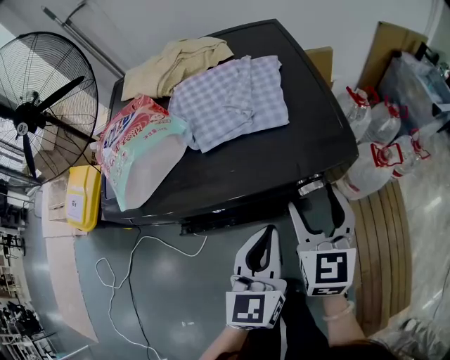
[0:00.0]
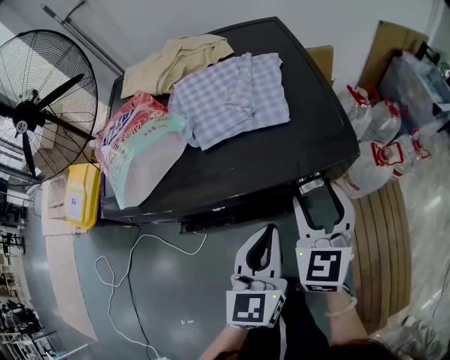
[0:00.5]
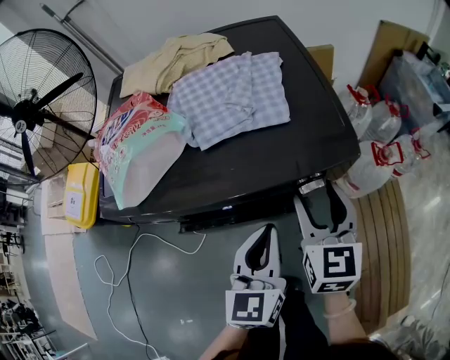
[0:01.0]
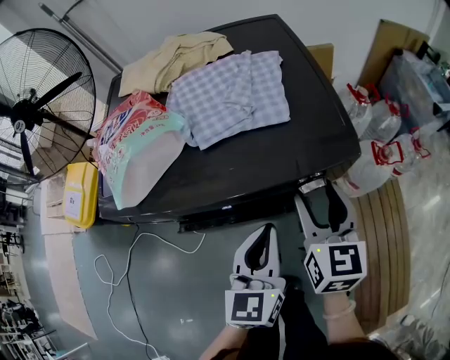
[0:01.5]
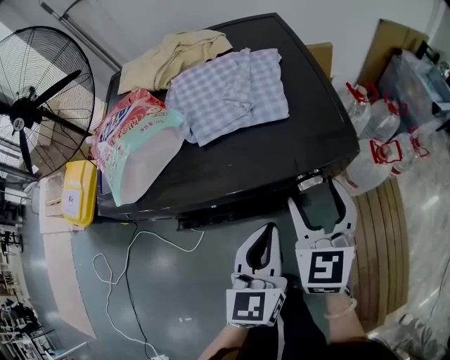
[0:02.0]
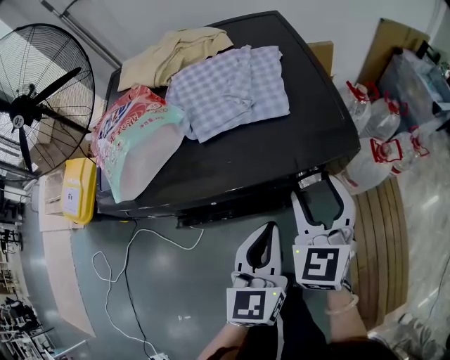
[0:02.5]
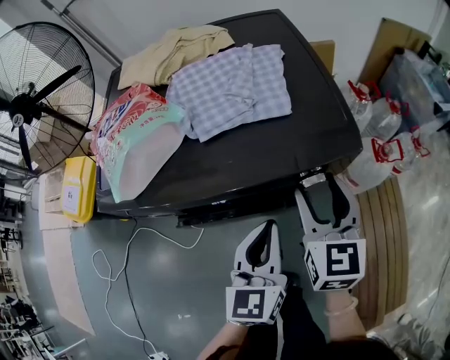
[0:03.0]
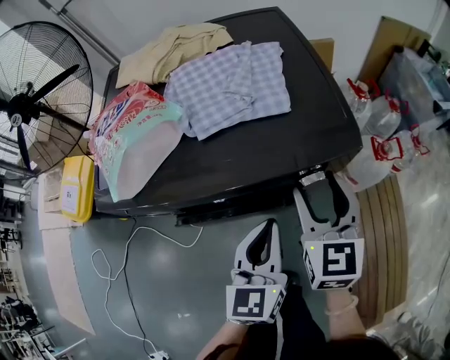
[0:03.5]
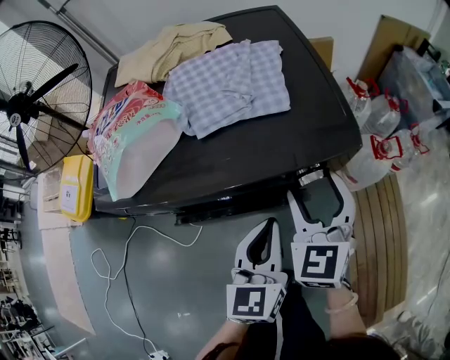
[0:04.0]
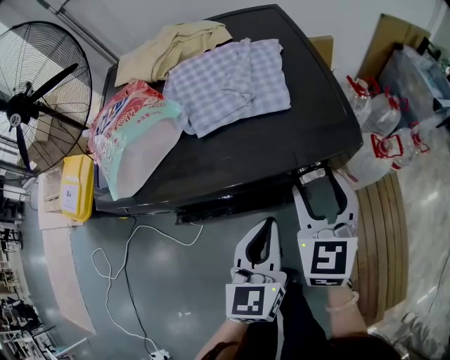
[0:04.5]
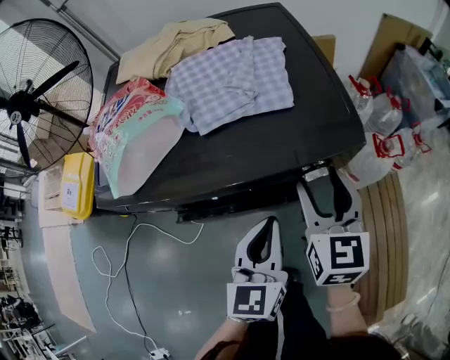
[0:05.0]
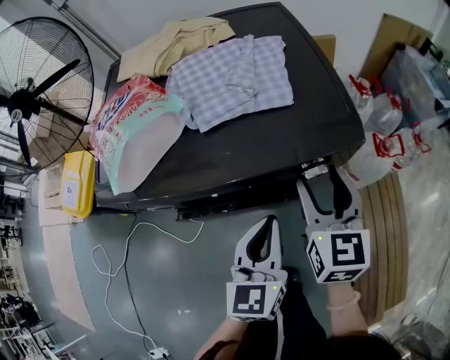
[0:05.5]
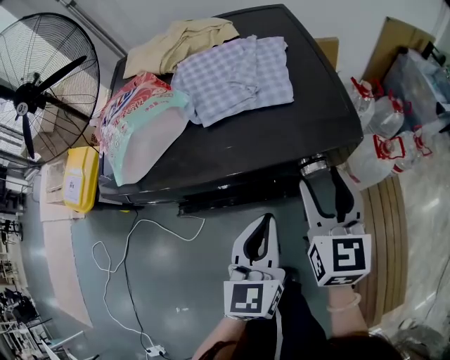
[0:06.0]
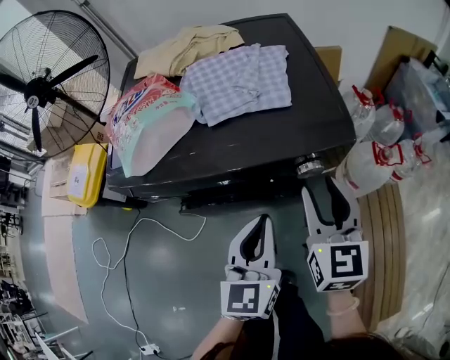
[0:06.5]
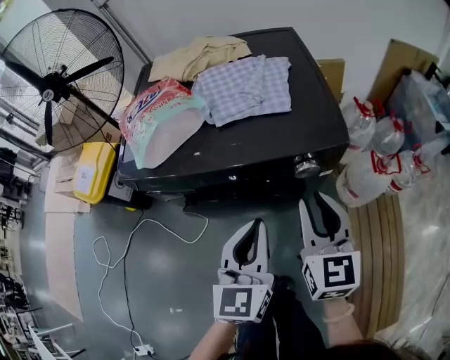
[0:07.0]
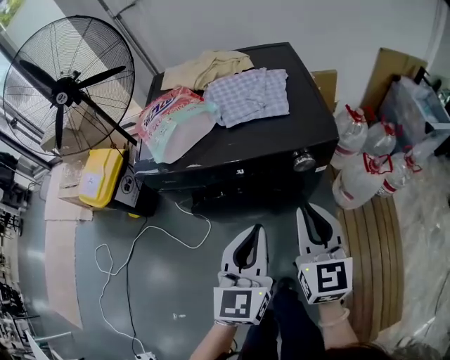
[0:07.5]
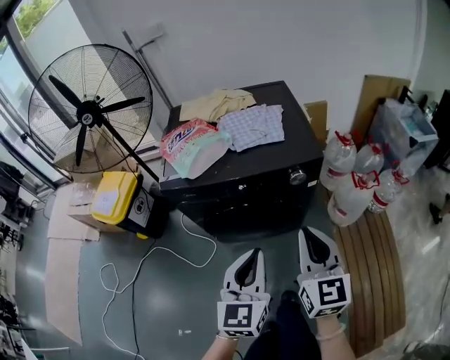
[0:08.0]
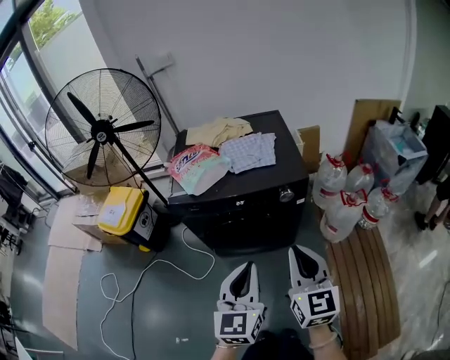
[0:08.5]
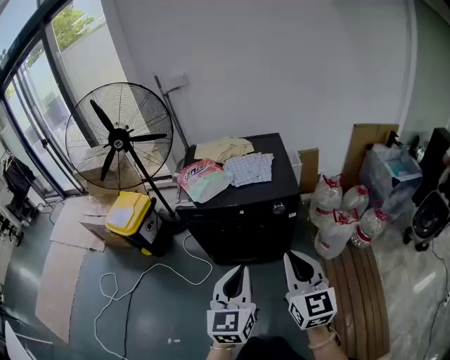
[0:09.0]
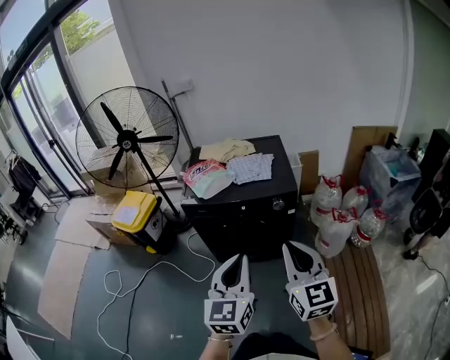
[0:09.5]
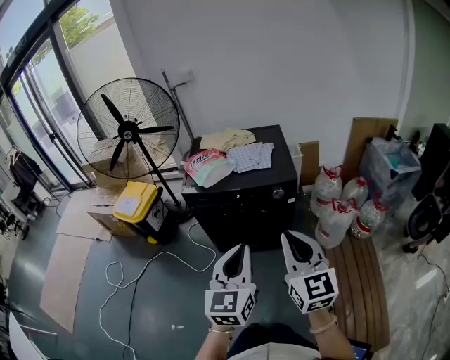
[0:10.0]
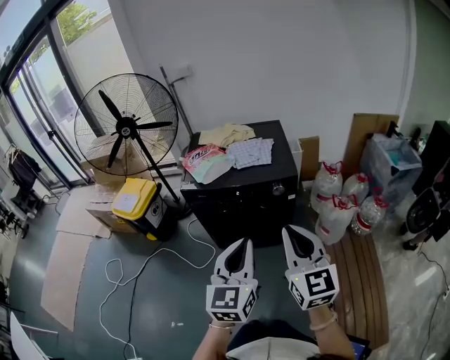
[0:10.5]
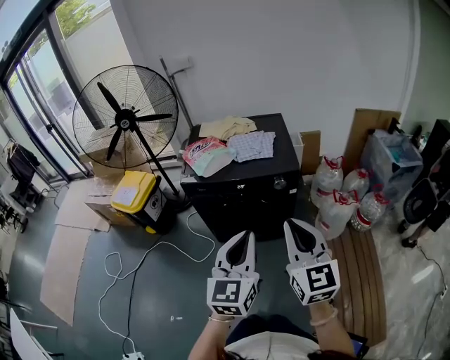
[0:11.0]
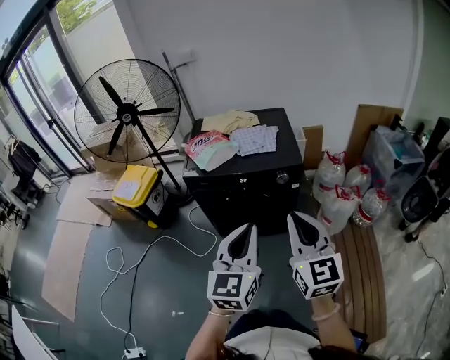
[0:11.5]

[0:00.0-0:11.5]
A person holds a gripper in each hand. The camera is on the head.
0:00.0 to 0:02.0: The grippers stay close to where they were, moving slightly.
0:02.0 to 0:04.0: The grippers stay close to where they were, moving slightly.
0:04.0 to 0:06.0: The right gripper rotates approximately 20 degrees.
0:06.0 to 0:07.5: The two grippers go about 15 cm backward and upward. The right gripper closes.
0:07.5 to 0:09.5: The two grippers go about 35 cm upward and backward.
0:09.5 to 0:11.5: The grippers stay close to where they were, moving slightly.

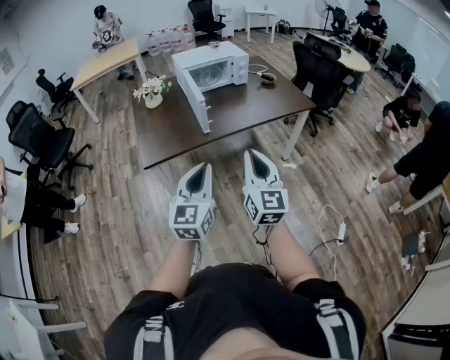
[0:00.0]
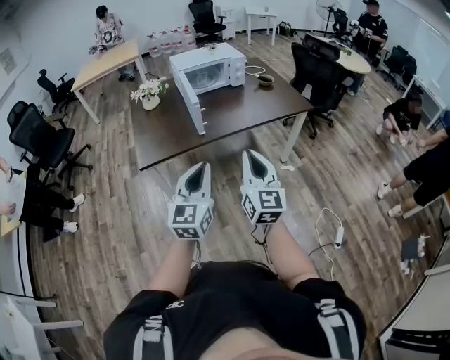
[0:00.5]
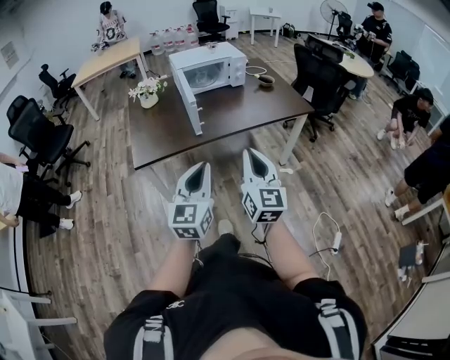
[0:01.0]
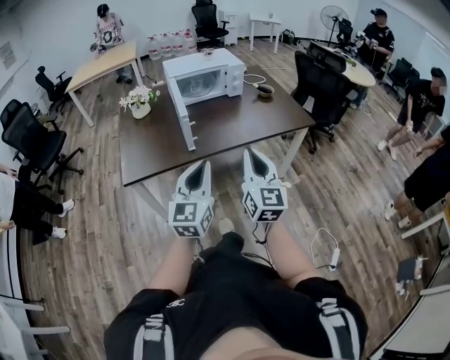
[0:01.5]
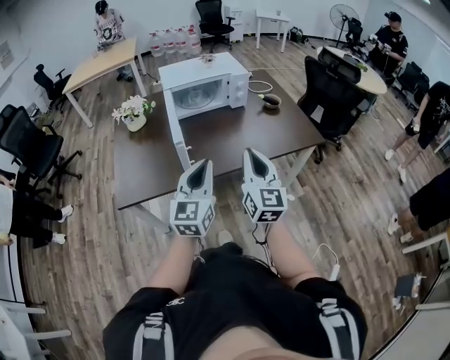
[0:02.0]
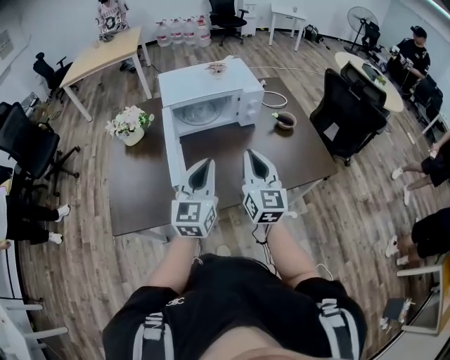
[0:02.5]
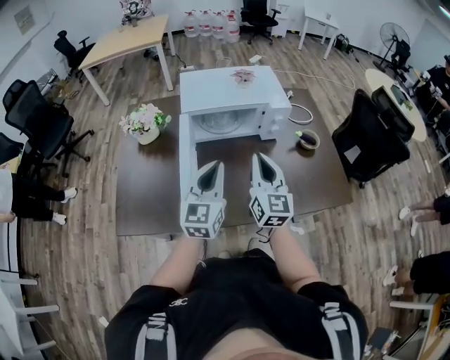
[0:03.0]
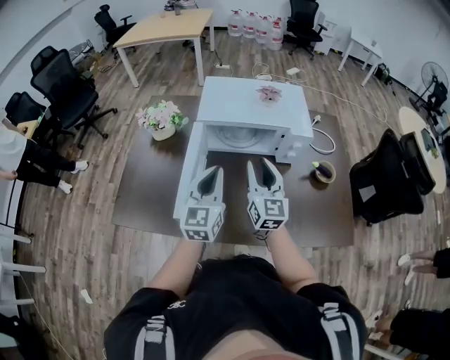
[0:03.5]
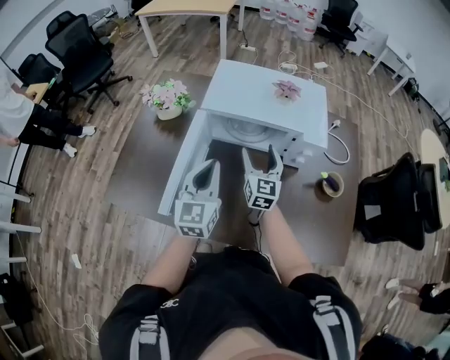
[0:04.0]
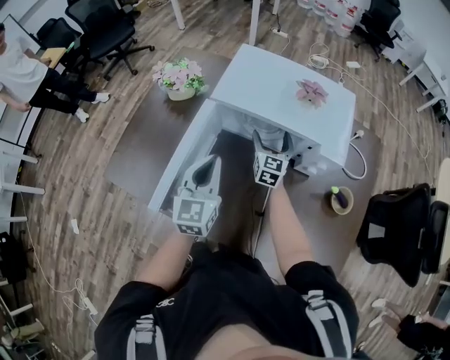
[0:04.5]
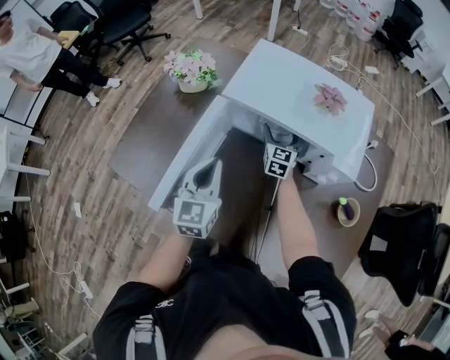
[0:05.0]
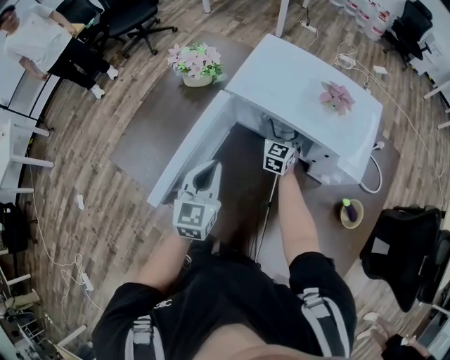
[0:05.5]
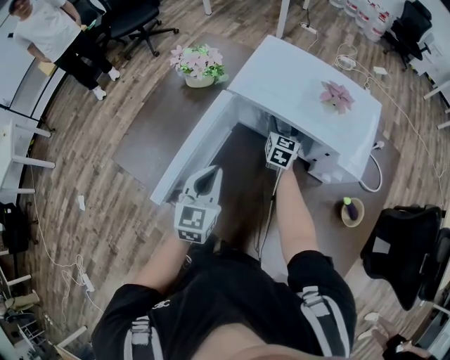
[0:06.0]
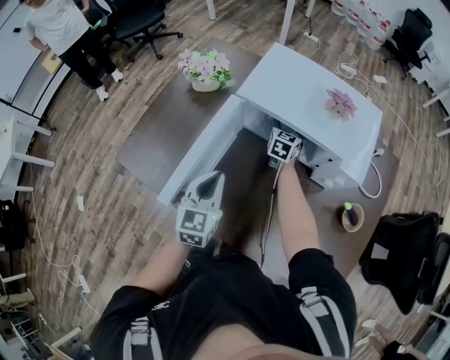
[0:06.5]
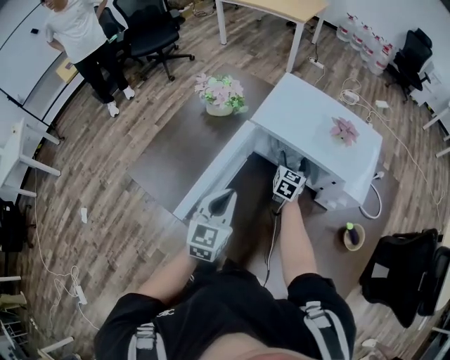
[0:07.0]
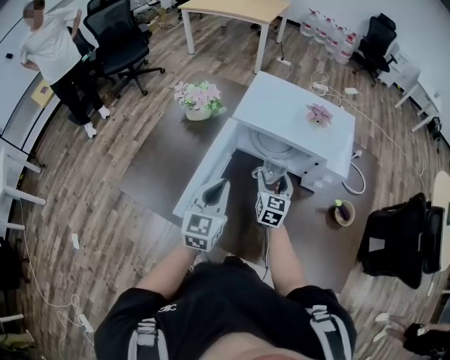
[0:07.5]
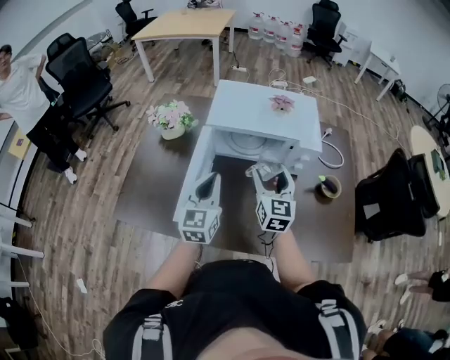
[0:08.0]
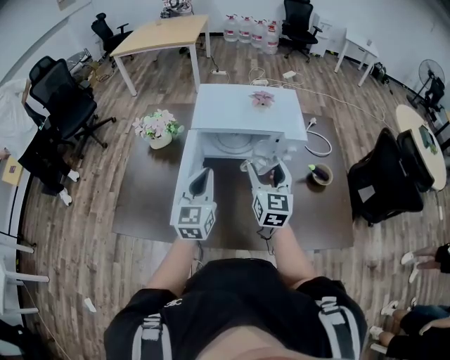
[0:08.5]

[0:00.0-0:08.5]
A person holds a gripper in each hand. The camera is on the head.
0:00.0 to 0:02.0: Both grippers travel together forward, some 30 cm.
0:02.0 to 0:04.0: The two grippers travel together, about 50 cm. The left gripper swivels roughly 30 degrees; the right gripper turns by roughly 30 degrees, and opens.
0:04.0 to 0:06.5: The left gripper shifts some 10 cm downward. The right gripper heads forward and downward, covering approximately 25 cm, and swivels about 20 degrees.
0:06.5 to 0:08.5: The right gripper is displaced backward and upward by approximately 35 cm, and swivels roughly 20 degrees. Meanwhile the left gripper travels upward by some 10 cm, and turns by about 20 degrees.

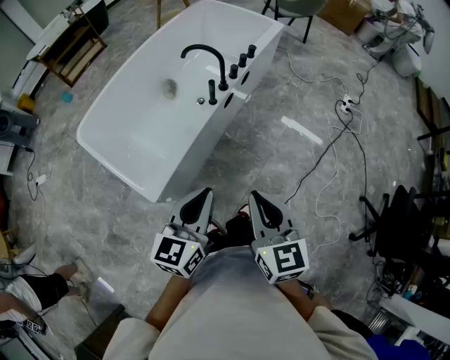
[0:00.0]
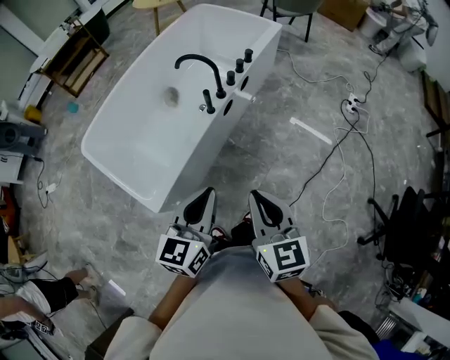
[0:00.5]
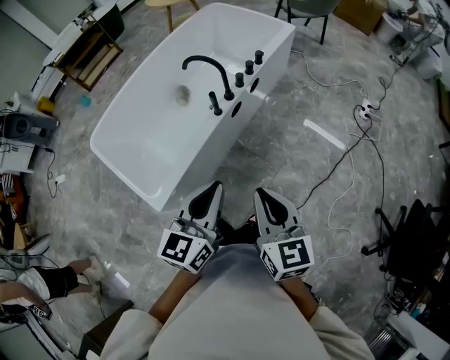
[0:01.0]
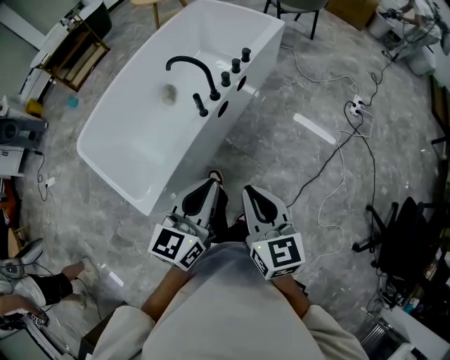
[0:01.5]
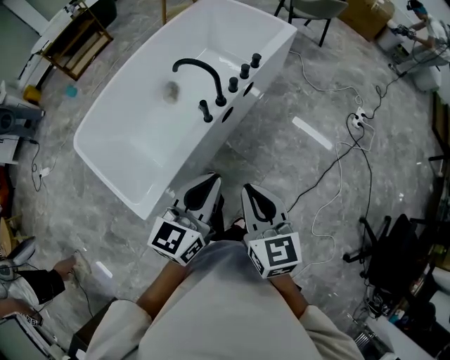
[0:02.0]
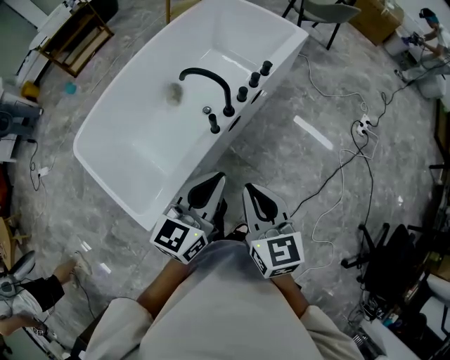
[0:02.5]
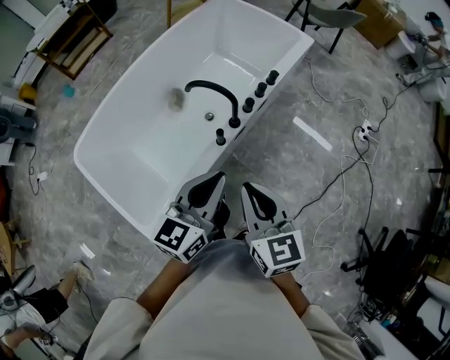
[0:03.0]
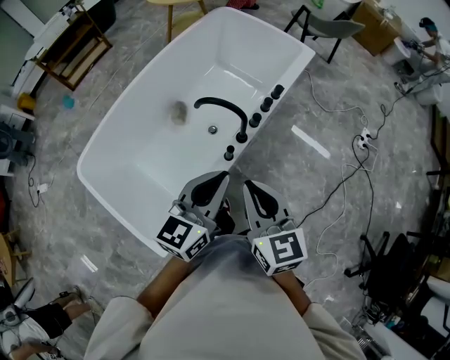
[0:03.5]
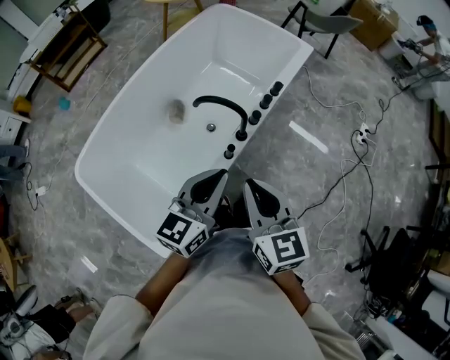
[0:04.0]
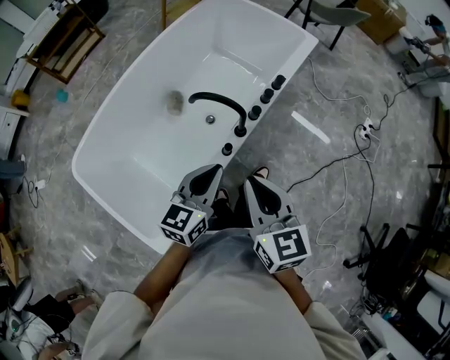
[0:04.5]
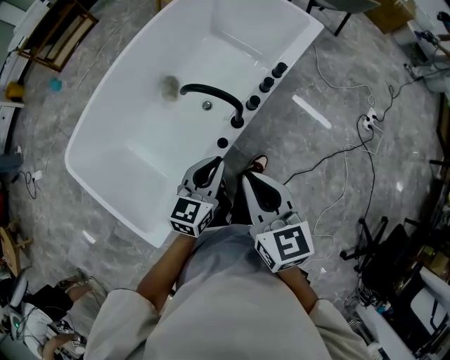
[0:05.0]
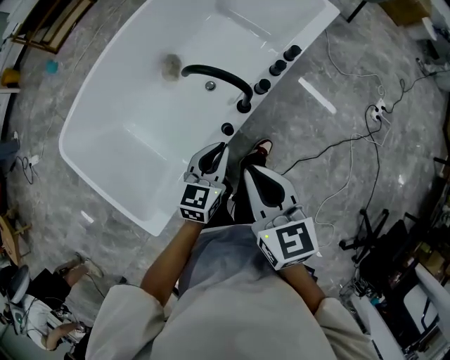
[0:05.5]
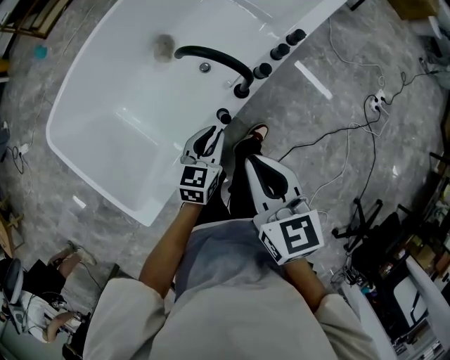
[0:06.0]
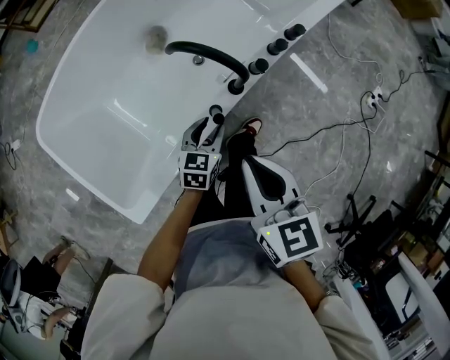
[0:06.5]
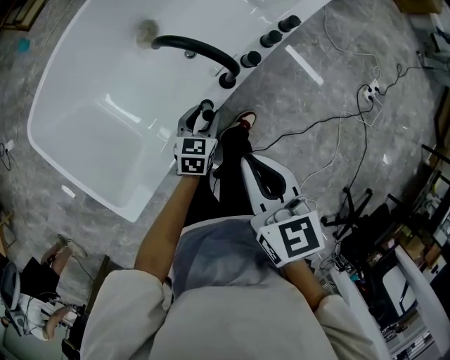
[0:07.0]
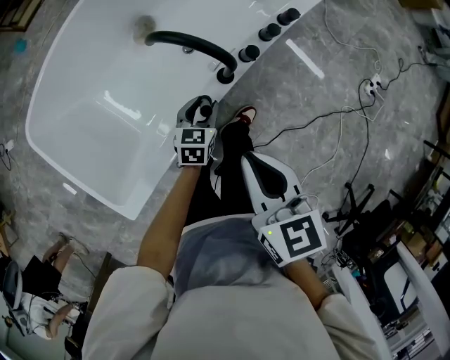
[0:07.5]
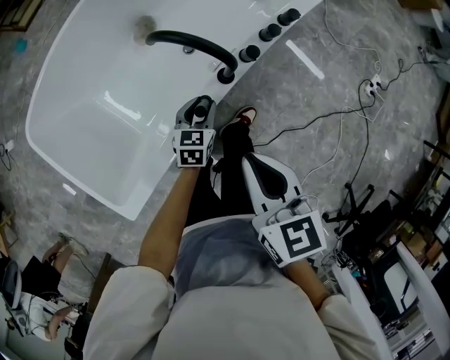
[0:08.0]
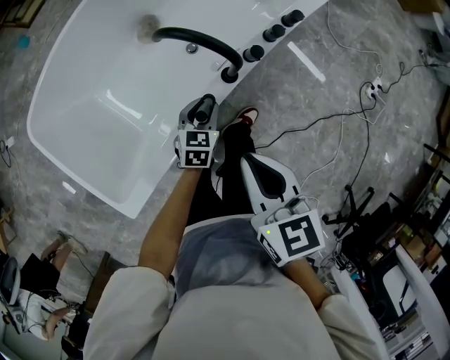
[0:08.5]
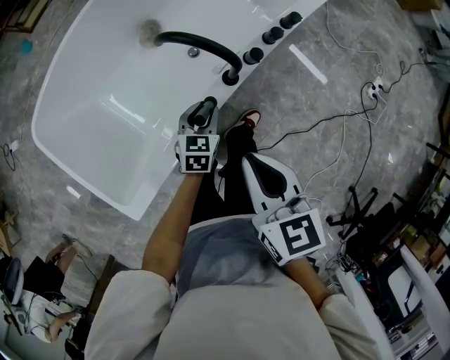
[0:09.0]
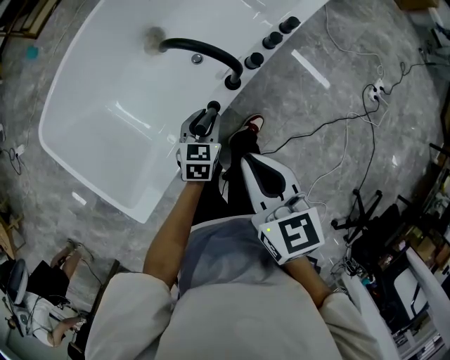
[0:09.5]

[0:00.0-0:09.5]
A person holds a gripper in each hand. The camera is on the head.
0:00.0 to 0:02.0: The right gripper is displaced forward by roughly 15 cm; the left gripper shifts some 20 cm forward and to the right.
0:02.0 to 0:04.0: The two grippers go approximately 25 cm forward and to the left.
0:04.0 to 0:05.5: The left gripper shifts about 20 cm downward, while the right gripper goes roughly 10 cm downward and forward.
0:05.5 to 0:07.5: The left gripper moves downward, some 20 cm, and opens up. The right gripper shifts about 5 cm downward.
0:07.5 to 0:09.5: The left gripper moves approximately 5 cm.
